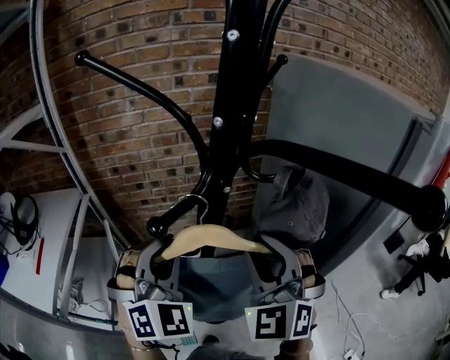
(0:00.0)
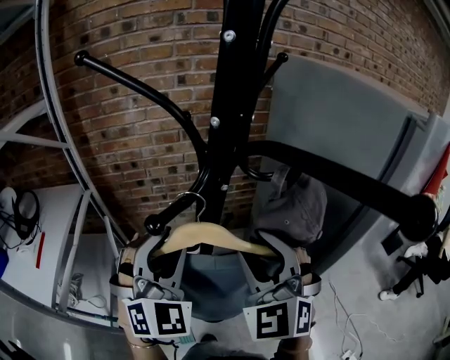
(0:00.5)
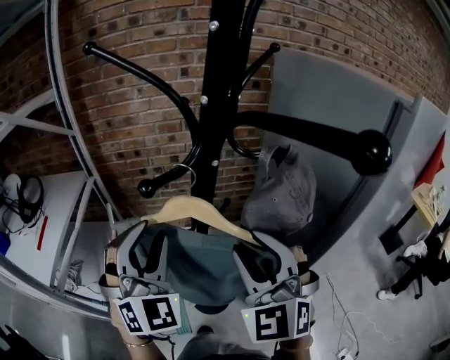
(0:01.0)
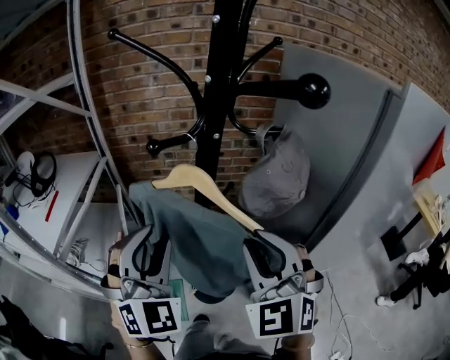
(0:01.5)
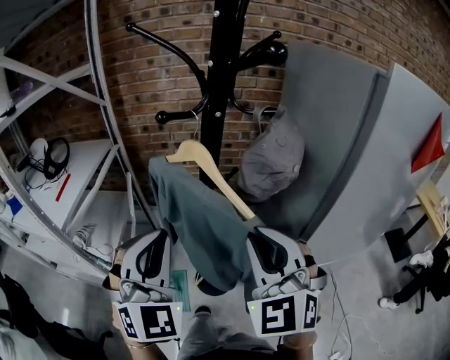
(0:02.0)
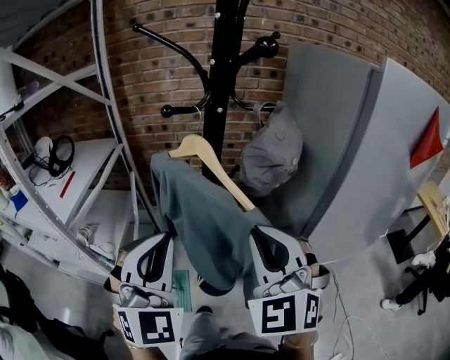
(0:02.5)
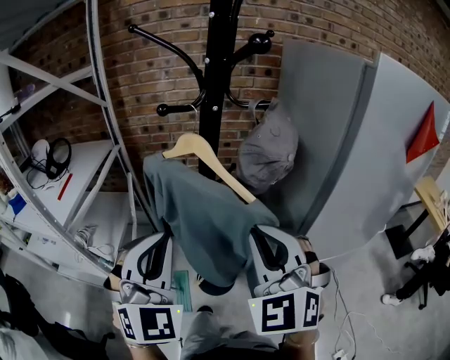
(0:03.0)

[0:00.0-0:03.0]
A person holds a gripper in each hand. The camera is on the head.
0:00.0 to 0:01.5: The grippers both shift backward by about 10 cm. The left gripper opens up.
0:01.5 to 0:03.0: Both grippers travel together backward, some 10 cm. The left gripper closes up.

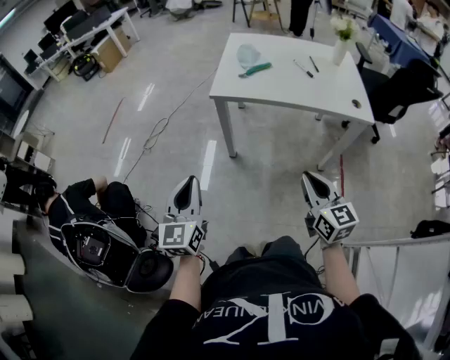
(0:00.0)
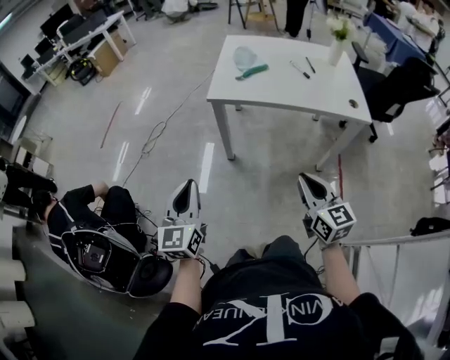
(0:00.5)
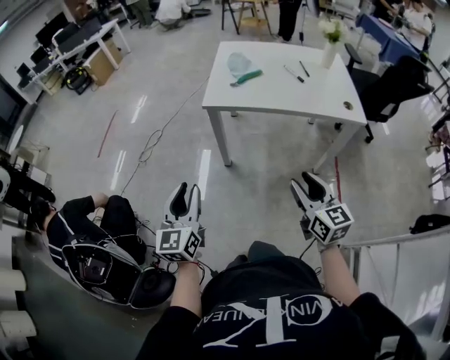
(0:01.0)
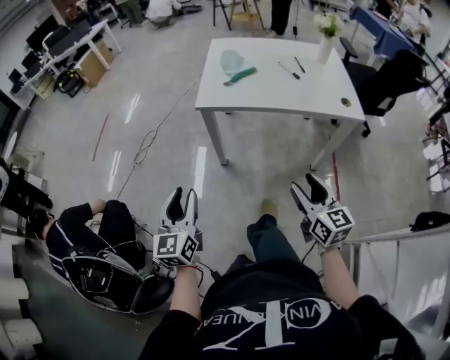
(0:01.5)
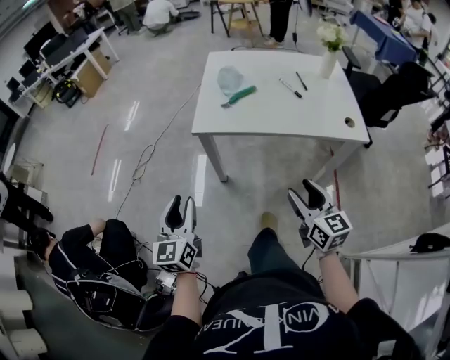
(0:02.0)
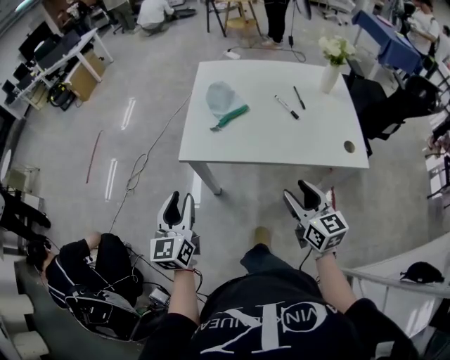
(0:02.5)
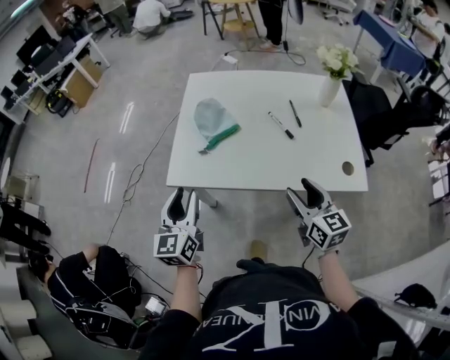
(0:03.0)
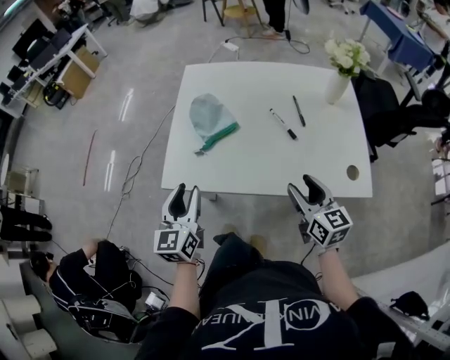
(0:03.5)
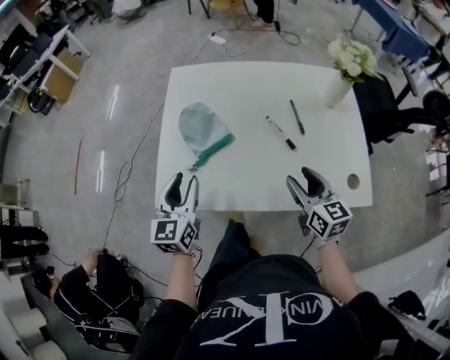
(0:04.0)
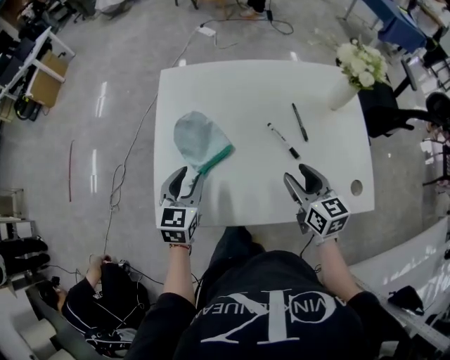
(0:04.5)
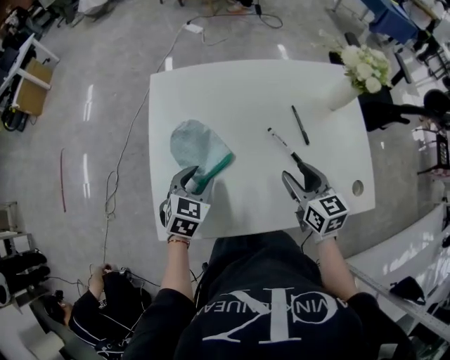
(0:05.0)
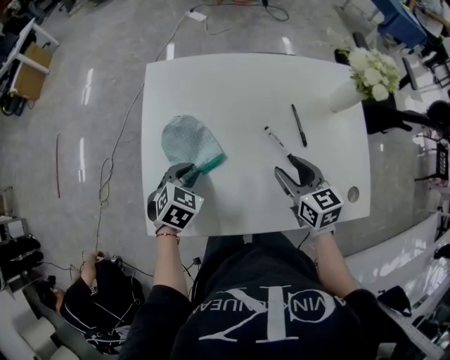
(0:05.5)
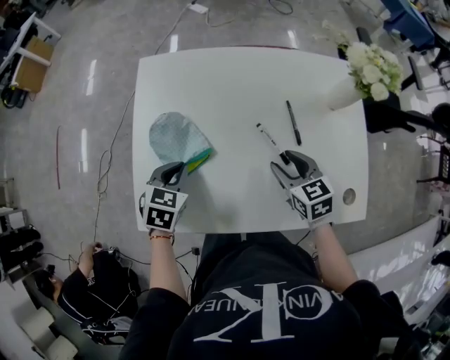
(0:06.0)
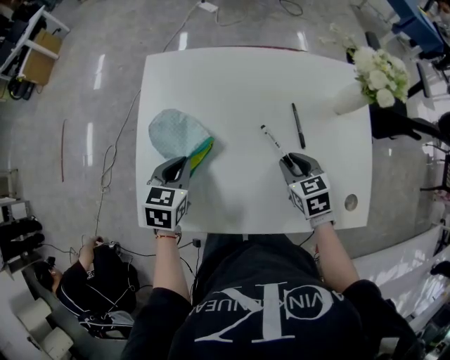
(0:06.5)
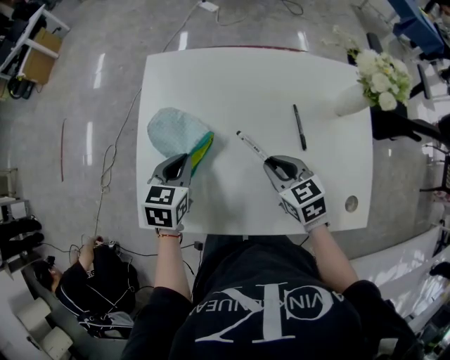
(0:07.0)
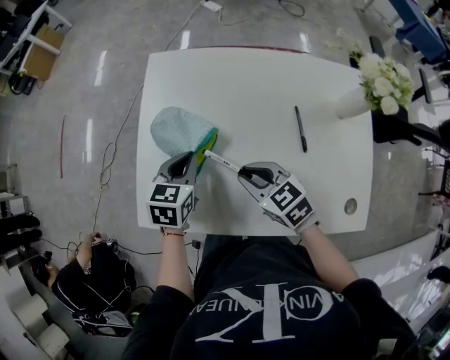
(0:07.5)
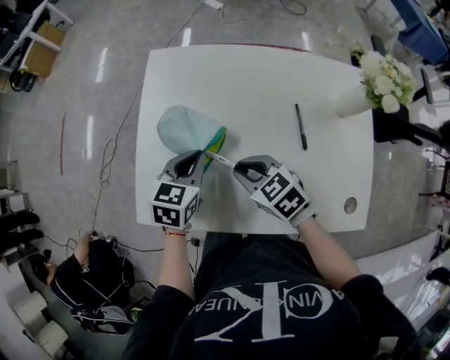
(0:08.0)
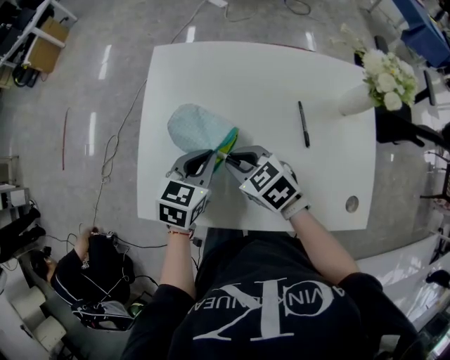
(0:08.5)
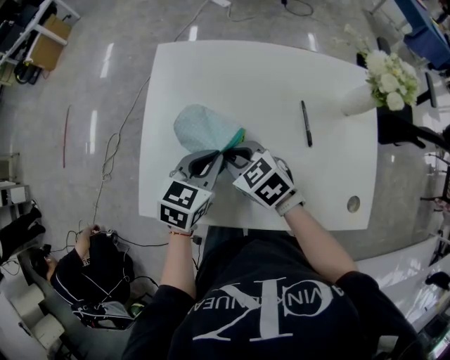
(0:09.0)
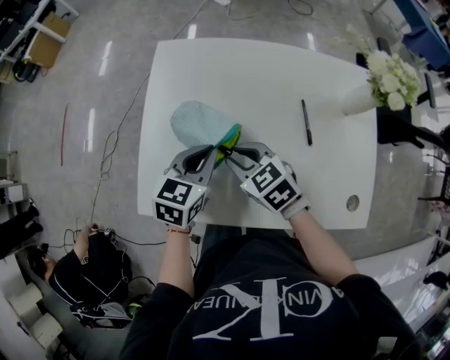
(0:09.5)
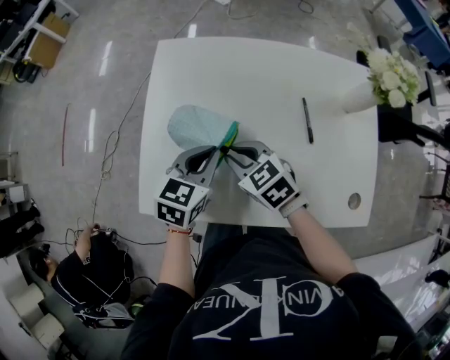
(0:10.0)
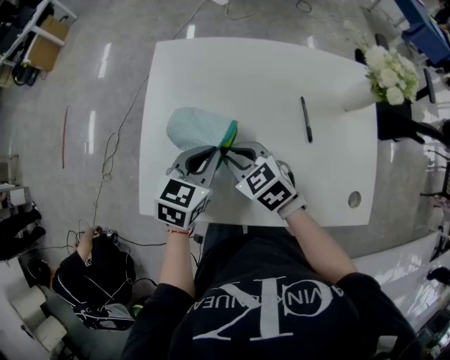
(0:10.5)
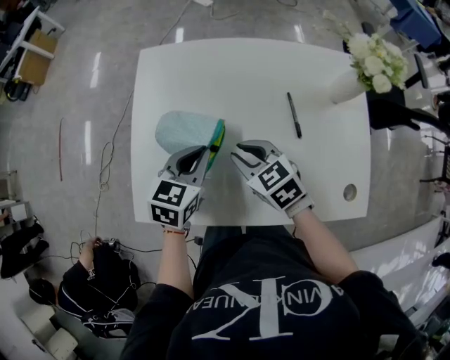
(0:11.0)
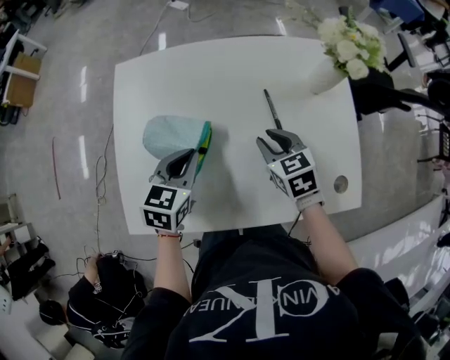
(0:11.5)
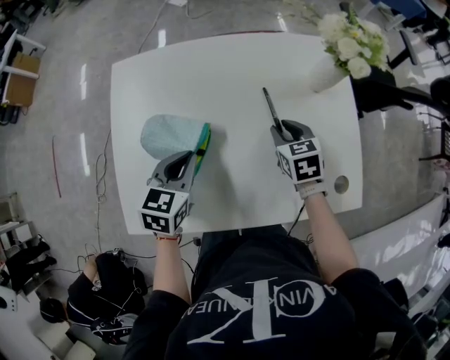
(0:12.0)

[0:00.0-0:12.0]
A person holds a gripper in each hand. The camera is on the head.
0:00.0 to 0:02.0: Both grippers travel together forward, roughly 10 cm. The right gripper opens its fingers, while the left gripper opens up.
0:02.0 to 0:04.0: The two grippers go about 40 cm forward and to the right.
0:04.0 to 0:06.0: The grippers both shift forward and downward by about 15 cm. The right gripper rotates about 20 degrees. The left gripper points its fingers roughly 40 degrees further downward, and closes its fingers.
0:06.0 to 0:08.0: The left gripper ends up about 5 cm from where it was. The right gripper heads to the left, covering approximately 15 cm, turns by approximately 30 degrees, and closes its fingers.
0:08.0 to 0:10.0: There are only small adjustments of the grippers.
0:10.0 to 0:12.0: The right gripper heads to the right, covering approximately 25 cm, and swivels some 40 degrees.

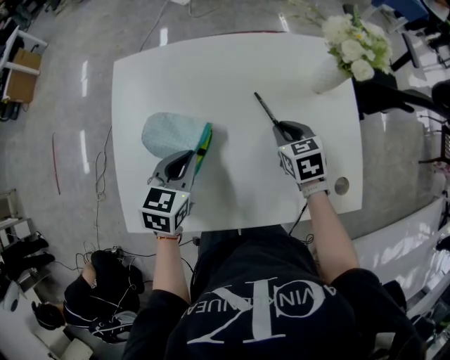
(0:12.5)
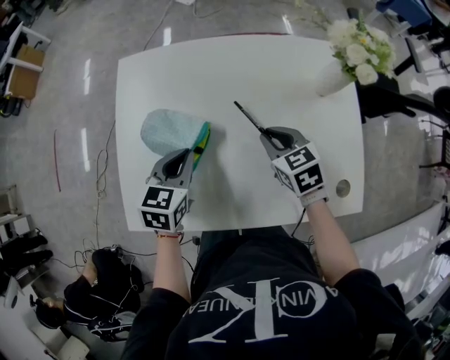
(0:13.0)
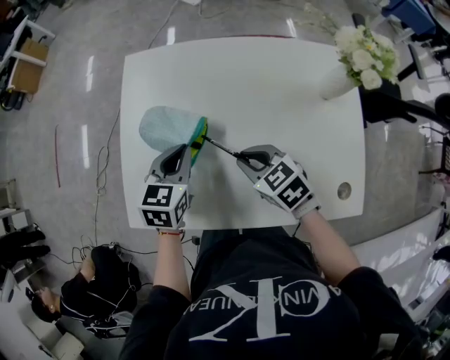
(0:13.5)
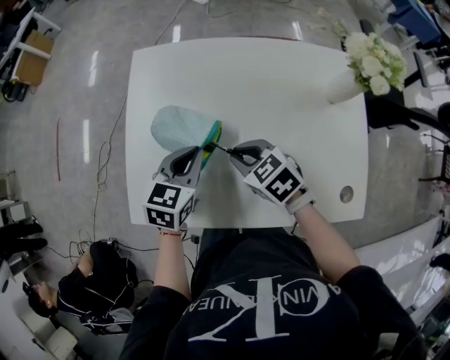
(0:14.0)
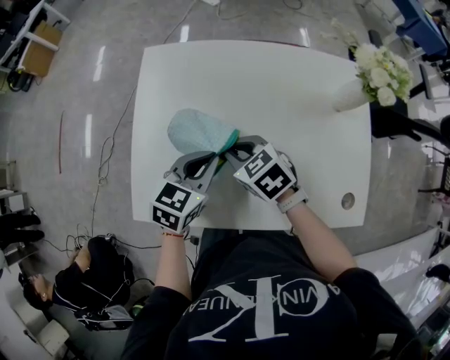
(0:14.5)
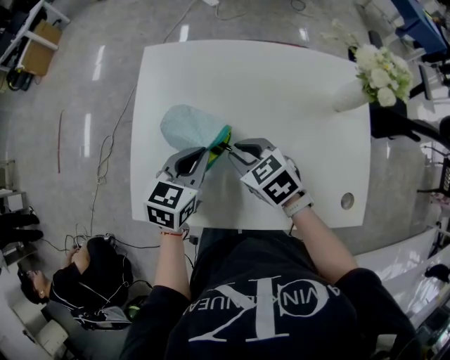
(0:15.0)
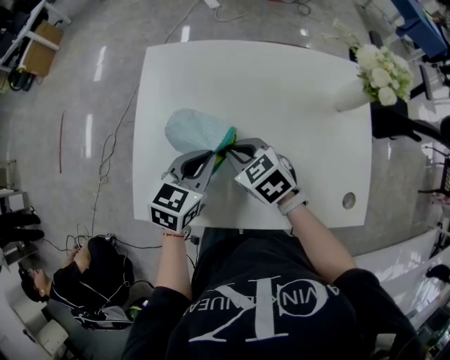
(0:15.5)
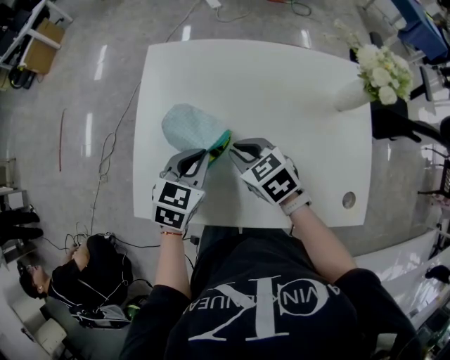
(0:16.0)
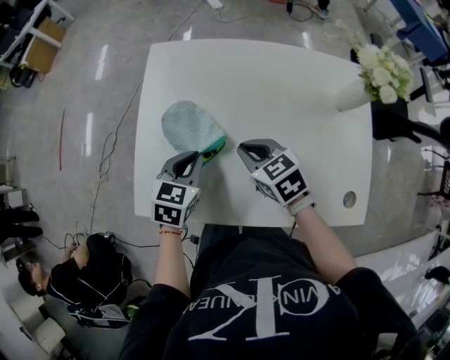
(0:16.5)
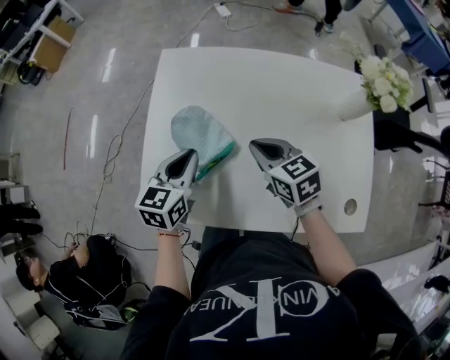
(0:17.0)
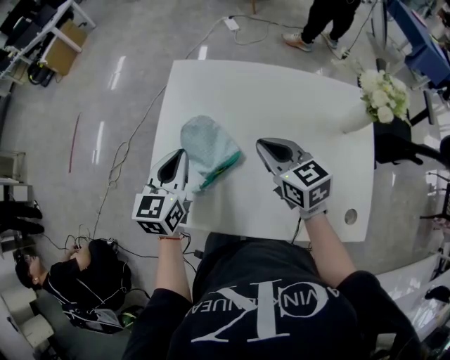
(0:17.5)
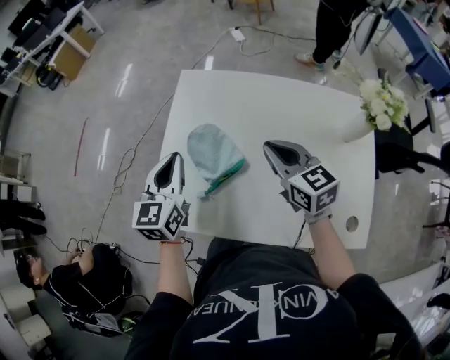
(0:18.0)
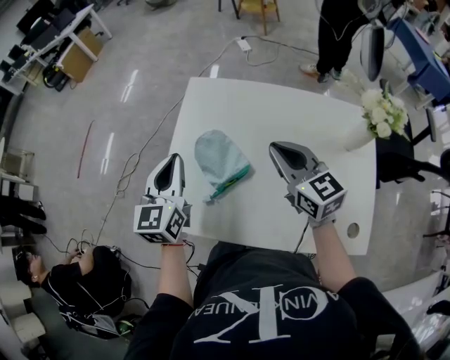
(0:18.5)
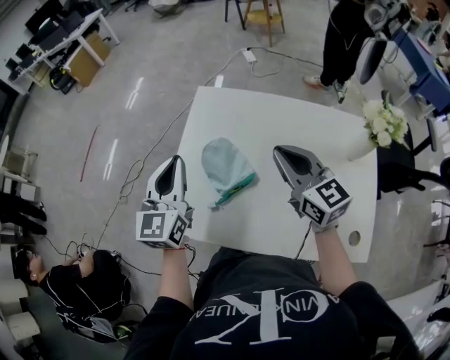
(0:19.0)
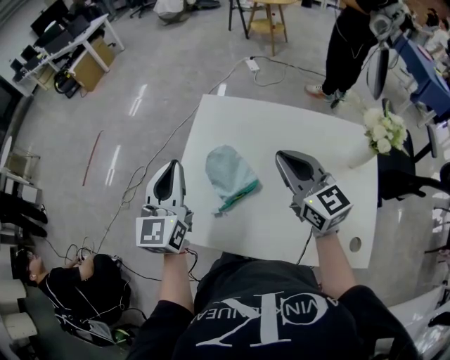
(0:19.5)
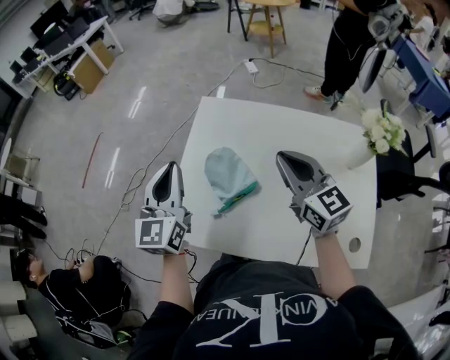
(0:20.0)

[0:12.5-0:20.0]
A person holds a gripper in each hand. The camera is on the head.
0:12.5 to 0:14.5: The right gripper moves to the left, some 20 cm, and rotates roughly 30 degrees.
0:14.5 to 0:16.5: The left gripper shifts roughly 5 cm to the left.
0:16.5 to 0:18.0: The left gripper shifts approximately 15 cm upward and to the left, and changes its angle by some 30 degrees. The right gripper is displaced upward by roughly 10 cm, and rotates approximately 20 degrees.
0:18.0 to 0:20.0: The two grippers go about 10 cm upward.

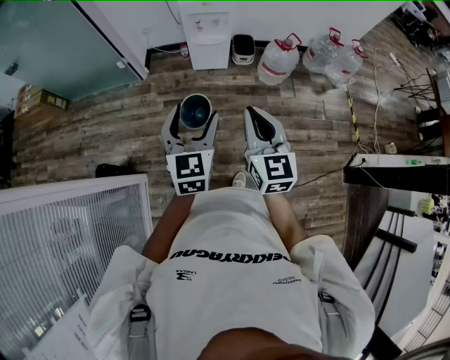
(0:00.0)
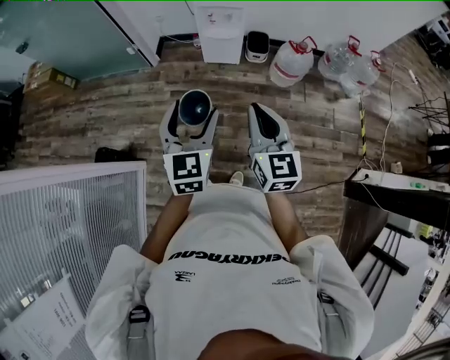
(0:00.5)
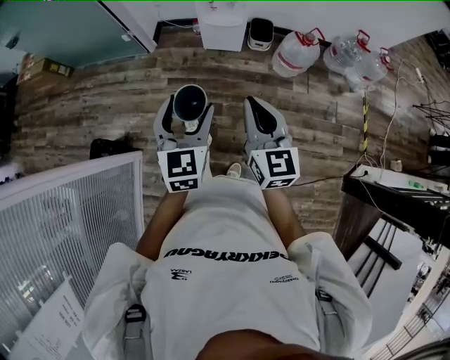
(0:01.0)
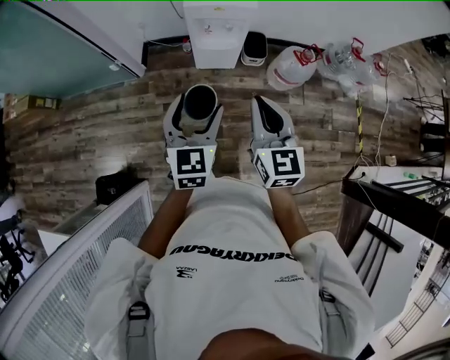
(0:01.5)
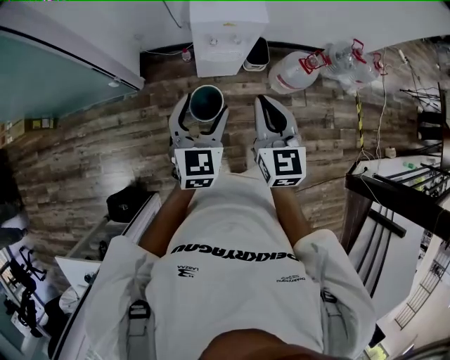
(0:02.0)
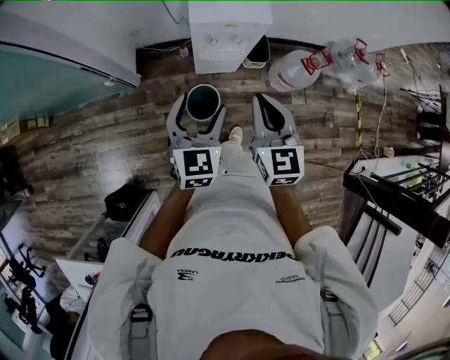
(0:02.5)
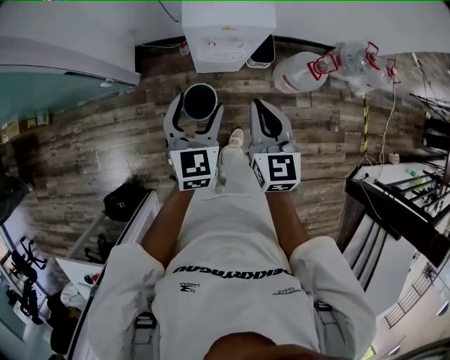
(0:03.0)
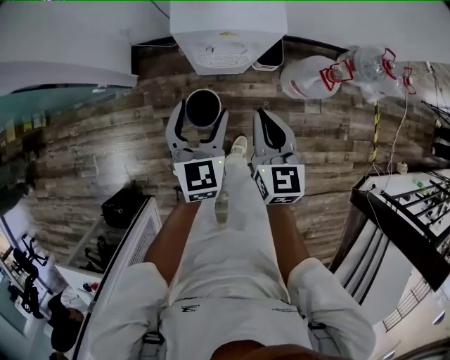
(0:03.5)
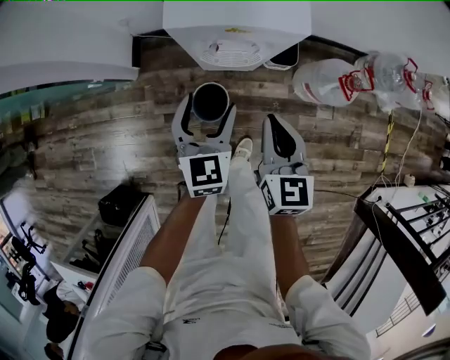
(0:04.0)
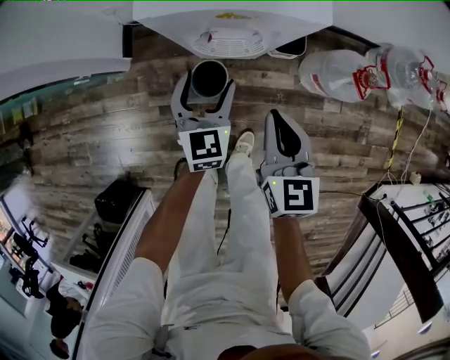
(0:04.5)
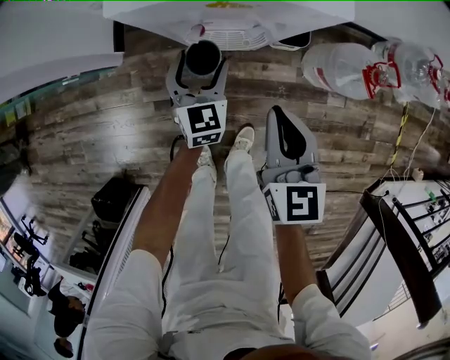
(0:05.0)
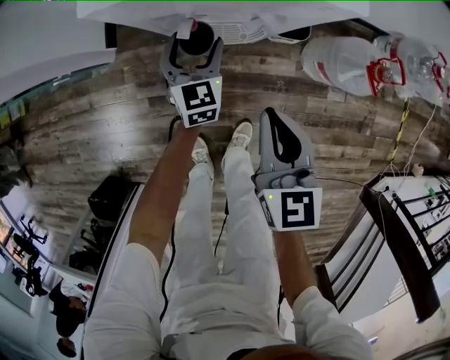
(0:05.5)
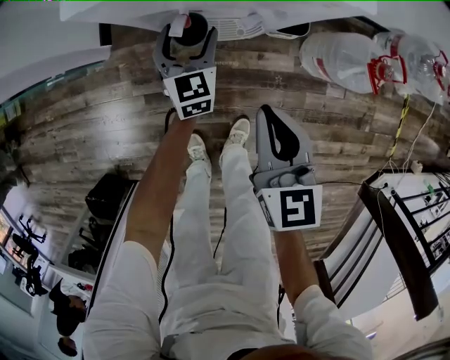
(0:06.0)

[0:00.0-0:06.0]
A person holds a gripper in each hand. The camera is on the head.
0:00.0 to 0:02.0: The pair of grippers is taken forward, some 40 cm.
0:02.0 to 0:04.0: Both grippers move downward and forward, about 35 cm.
0:04.0 to 0:06.0: The left gripper moves downward and forward, about 30 cm; the right gripper is displaced downward by approximately 15 cm.
